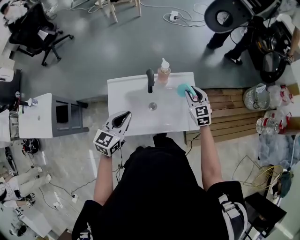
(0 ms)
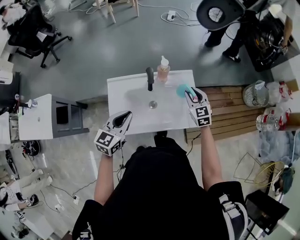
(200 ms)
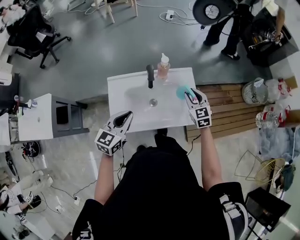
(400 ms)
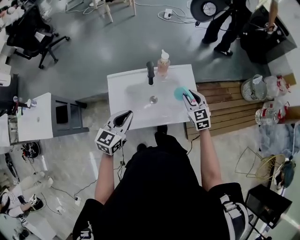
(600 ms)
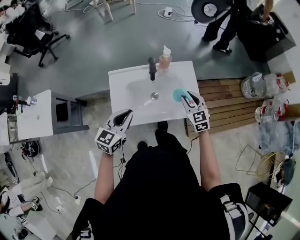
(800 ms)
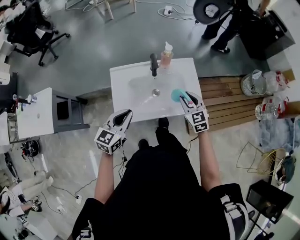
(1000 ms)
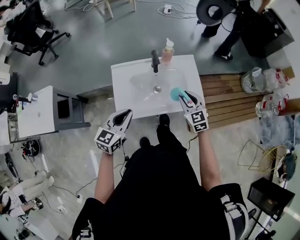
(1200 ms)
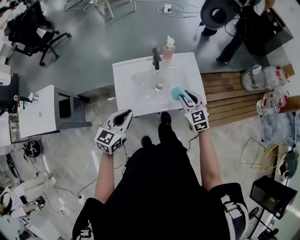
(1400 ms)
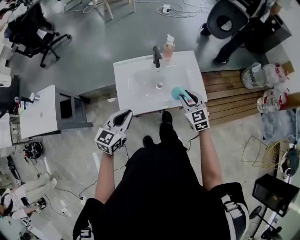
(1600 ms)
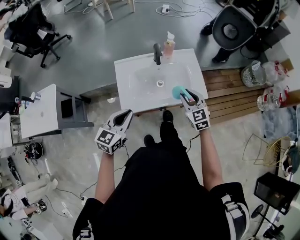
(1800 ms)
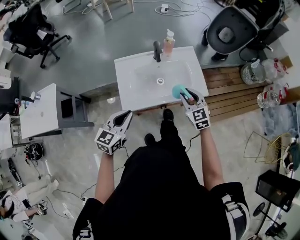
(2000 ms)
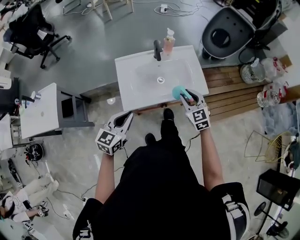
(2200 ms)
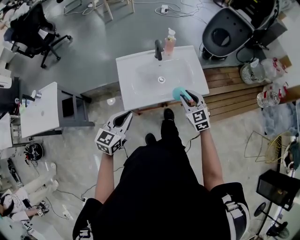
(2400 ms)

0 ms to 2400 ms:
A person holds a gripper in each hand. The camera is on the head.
0 ms to 1200 ms: Both grippers move backward, about 15 cm.
1200 ms to 2400 ms: Both grippers move backward, some 15 cm.

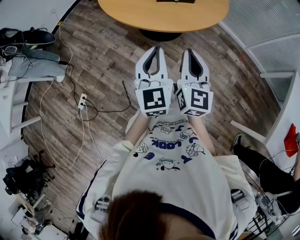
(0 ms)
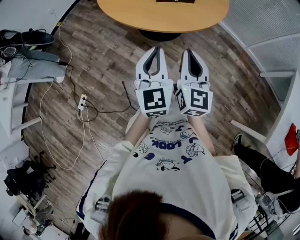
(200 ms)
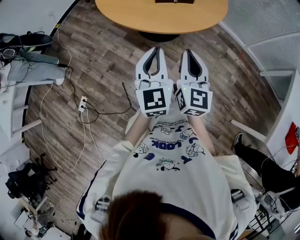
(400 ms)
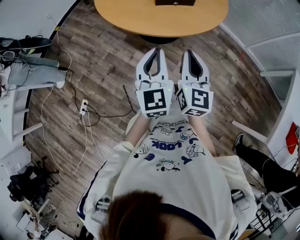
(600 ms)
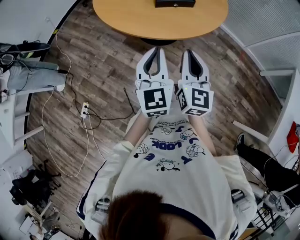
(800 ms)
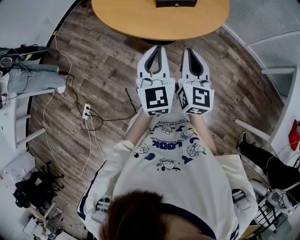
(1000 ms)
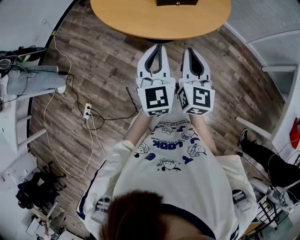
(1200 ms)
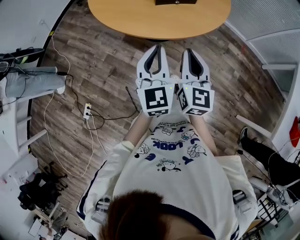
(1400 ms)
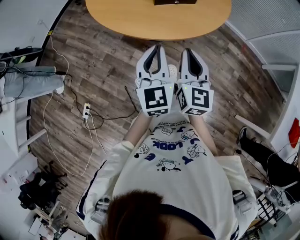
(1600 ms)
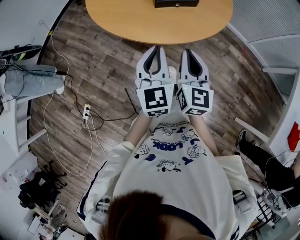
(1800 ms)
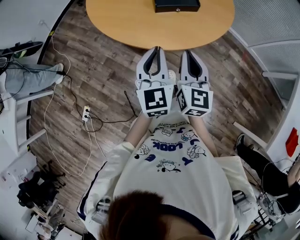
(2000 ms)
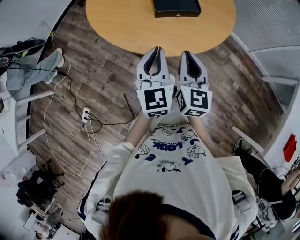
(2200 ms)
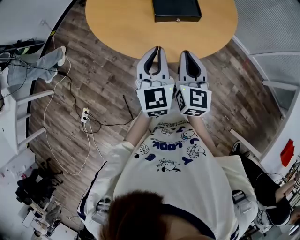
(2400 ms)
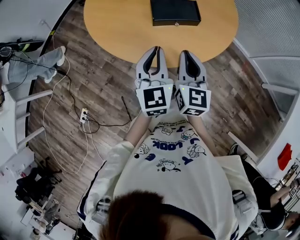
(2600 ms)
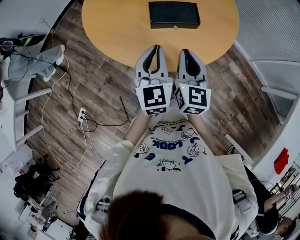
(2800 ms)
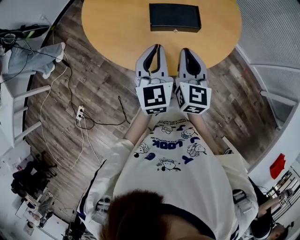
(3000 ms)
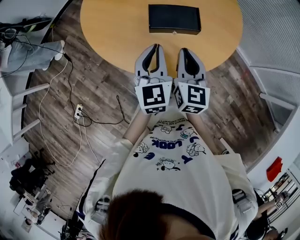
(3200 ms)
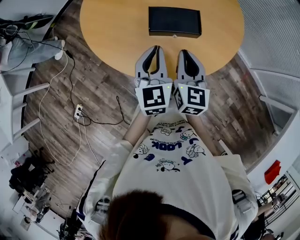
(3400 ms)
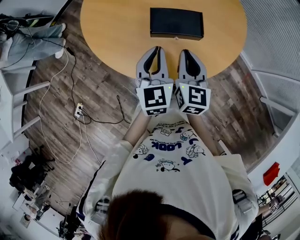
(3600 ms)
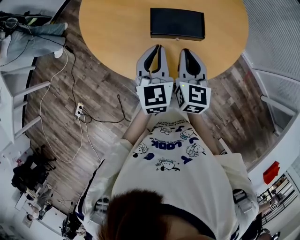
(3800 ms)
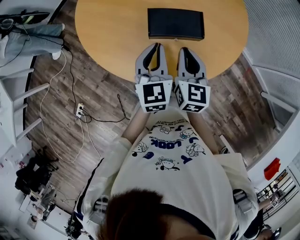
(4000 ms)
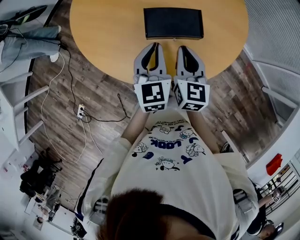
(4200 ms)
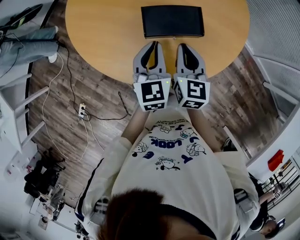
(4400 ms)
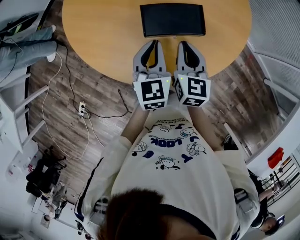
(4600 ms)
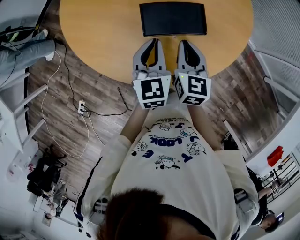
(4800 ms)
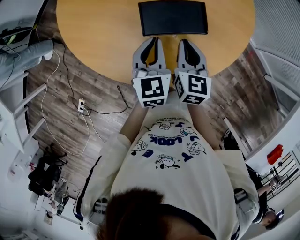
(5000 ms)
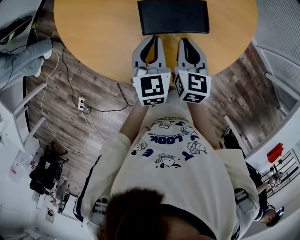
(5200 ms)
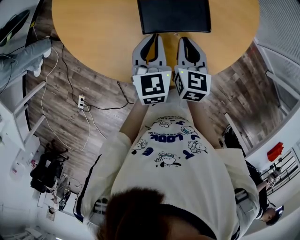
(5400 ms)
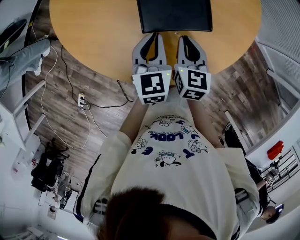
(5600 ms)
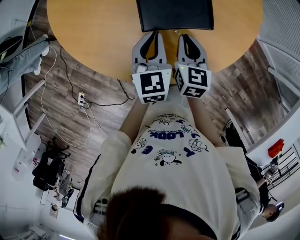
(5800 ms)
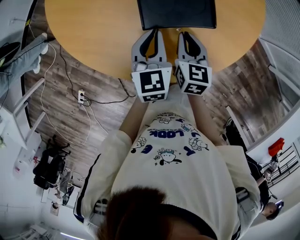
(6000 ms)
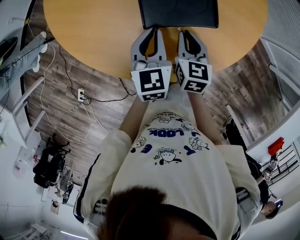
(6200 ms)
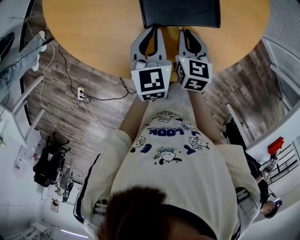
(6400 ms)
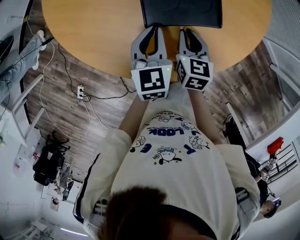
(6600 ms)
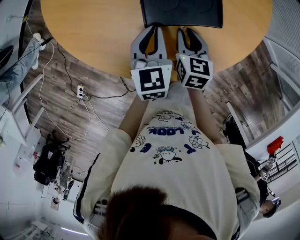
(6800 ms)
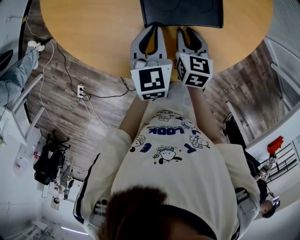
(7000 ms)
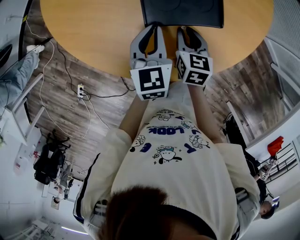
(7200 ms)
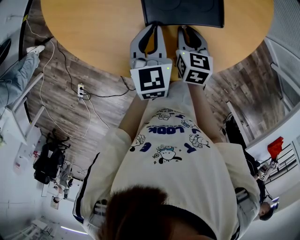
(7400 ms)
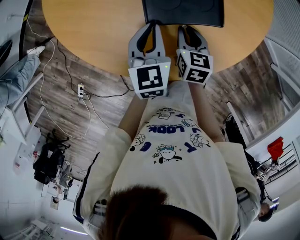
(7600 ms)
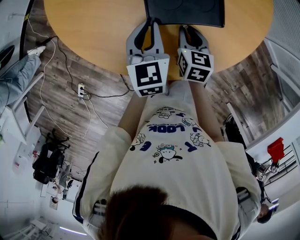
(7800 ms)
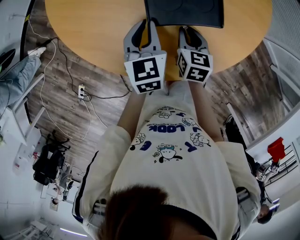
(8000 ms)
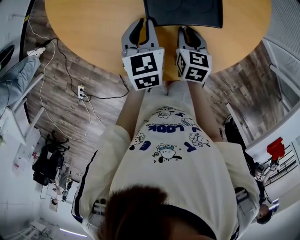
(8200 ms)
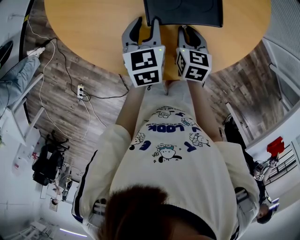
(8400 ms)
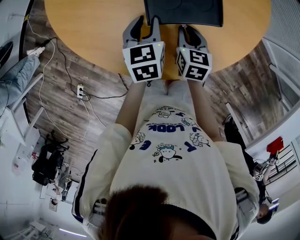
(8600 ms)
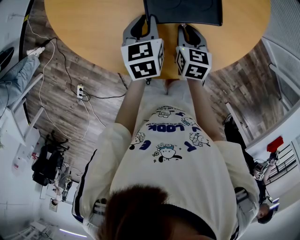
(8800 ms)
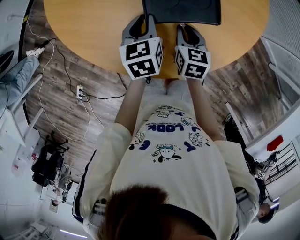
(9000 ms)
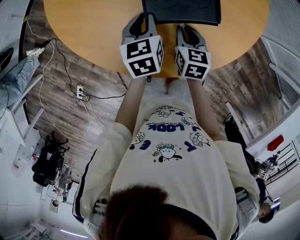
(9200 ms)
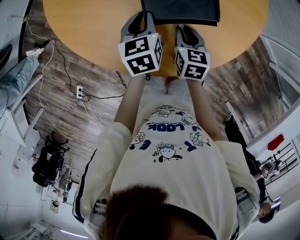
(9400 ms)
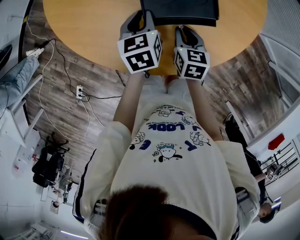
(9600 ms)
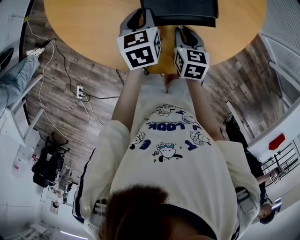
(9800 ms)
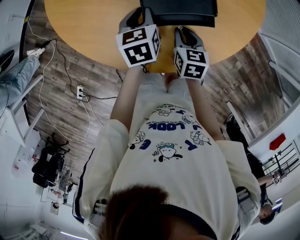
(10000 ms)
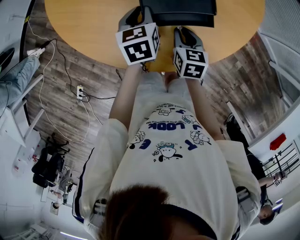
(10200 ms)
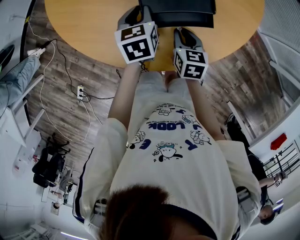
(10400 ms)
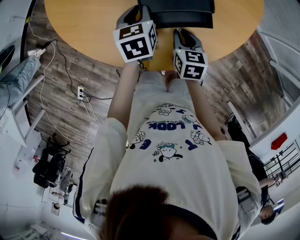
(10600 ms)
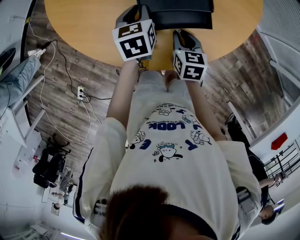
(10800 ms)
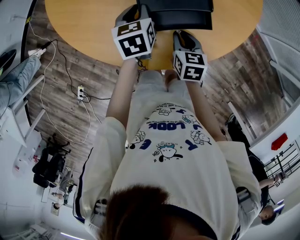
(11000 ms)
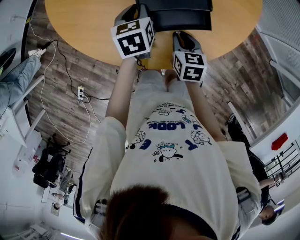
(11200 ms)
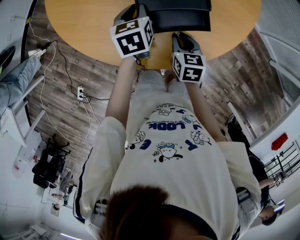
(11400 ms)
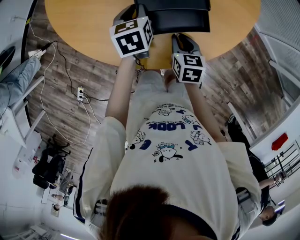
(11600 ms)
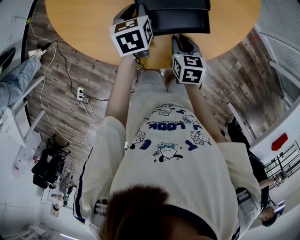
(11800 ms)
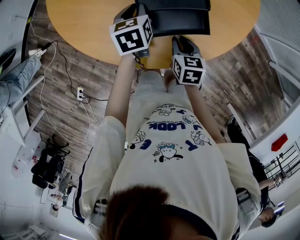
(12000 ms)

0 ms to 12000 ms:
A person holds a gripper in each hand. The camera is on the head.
0 ms to 1600 ms: The two grippers go about 10 cm forward.
1600 ms to 3000 ms: Both grippers travel together forward, approximately 20 cm.
3000 ms to 4400 ms: Both grippers travel together forward and downward, roughly 15 cm.
4400 ms to 6000 ms: The grippers both shift downward by about 10 cm.
6000 ms to 7600 ms: The right gripper moves about 5 cm.
7600 ms to 10400 ms: The grippers move only a little.
10400 ms to 12000 ms: The grippers move only a little.

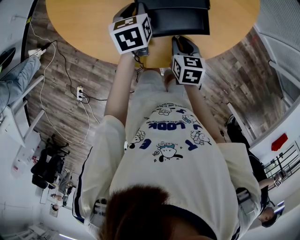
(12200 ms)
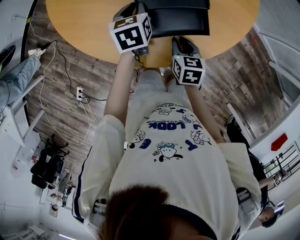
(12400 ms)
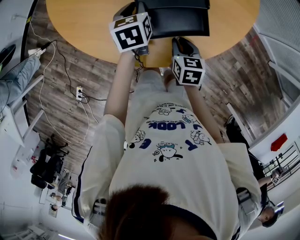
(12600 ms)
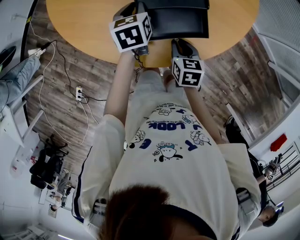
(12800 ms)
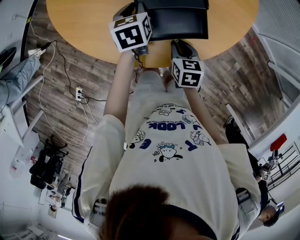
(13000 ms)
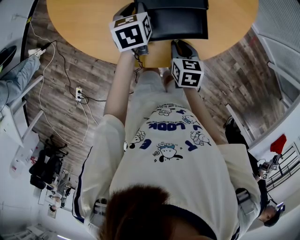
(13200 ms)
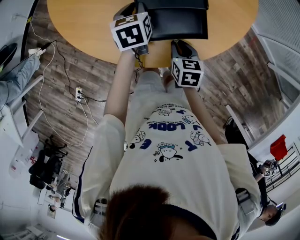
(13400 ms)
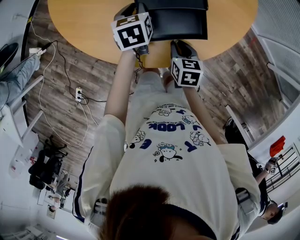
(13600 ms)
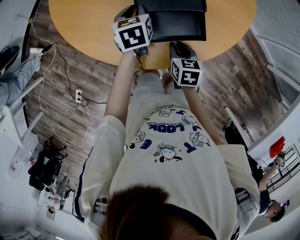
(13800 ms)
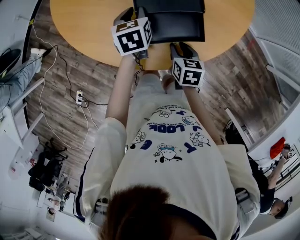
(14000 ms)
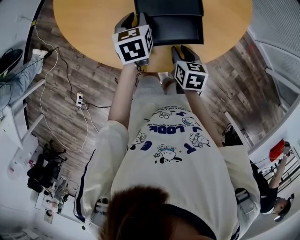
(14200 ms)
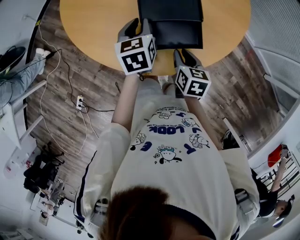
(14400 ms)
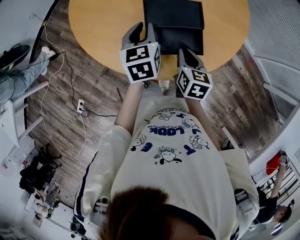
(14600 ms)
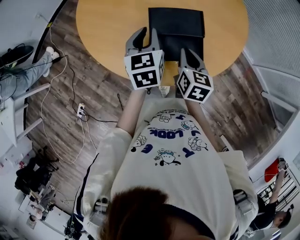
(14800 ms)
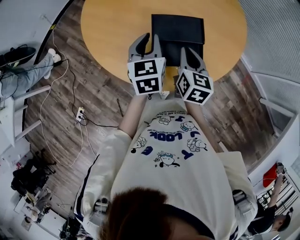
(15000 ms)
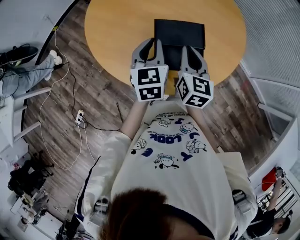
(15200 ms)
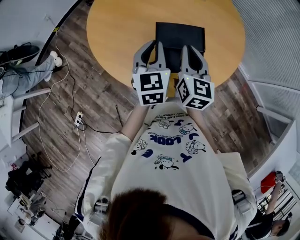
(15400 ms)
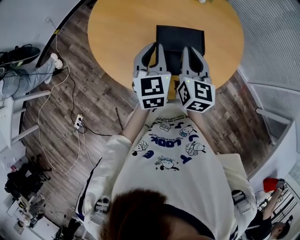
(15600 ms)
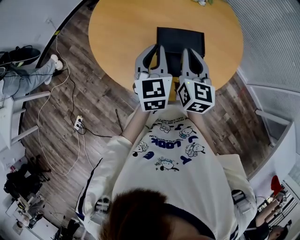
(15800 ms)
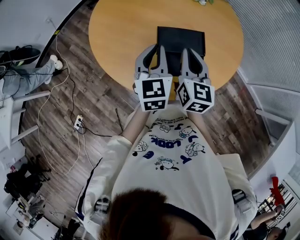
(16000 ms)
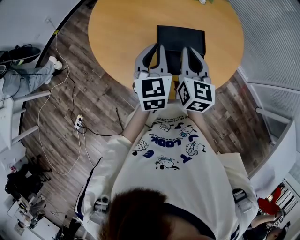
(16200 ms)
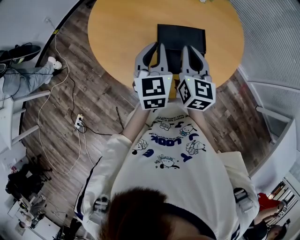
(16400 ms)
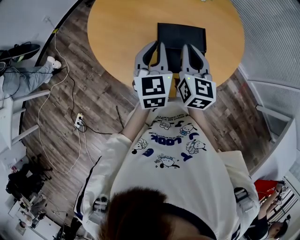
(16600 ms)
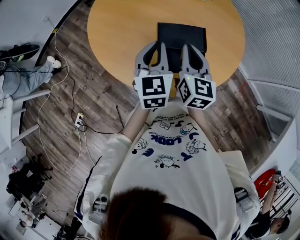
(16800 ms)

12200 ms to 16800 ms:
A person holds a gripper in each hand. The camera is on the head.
12200 ms to 13800 ms: The grippers move only a little.
13800 ms to 15200 ms: The grippers both shift upward by about 20 cm. The right gripper tilts its fingers approximately 30 degrees upward; the left gripper turns by approximately 20 degrees.
15200 ms to 16800 ms: The grippers make only small movements.

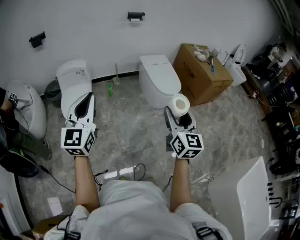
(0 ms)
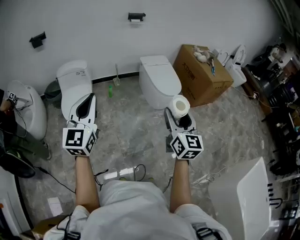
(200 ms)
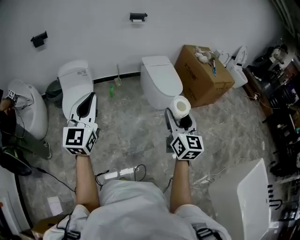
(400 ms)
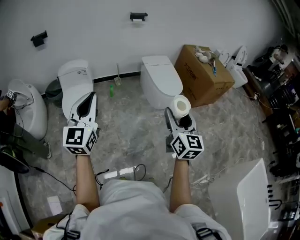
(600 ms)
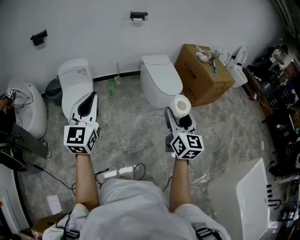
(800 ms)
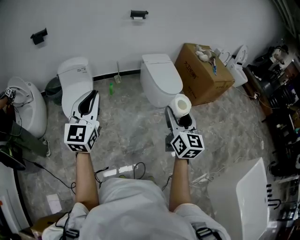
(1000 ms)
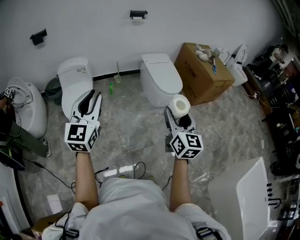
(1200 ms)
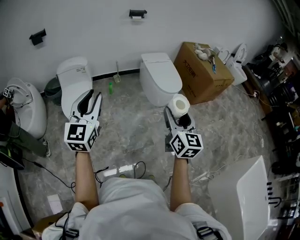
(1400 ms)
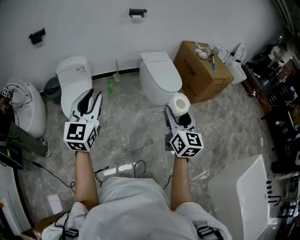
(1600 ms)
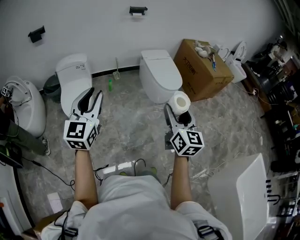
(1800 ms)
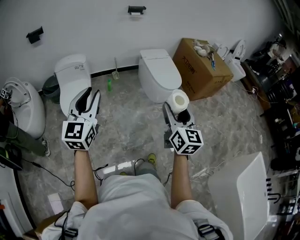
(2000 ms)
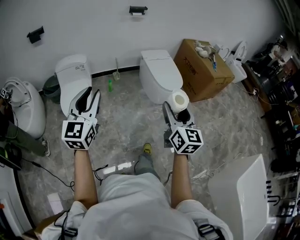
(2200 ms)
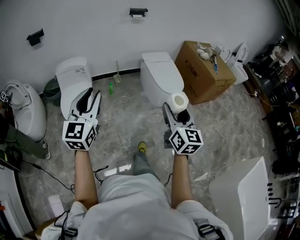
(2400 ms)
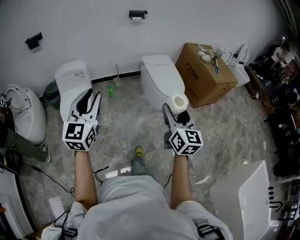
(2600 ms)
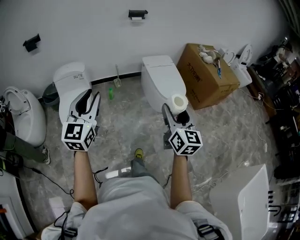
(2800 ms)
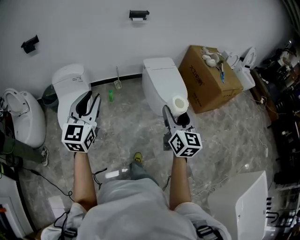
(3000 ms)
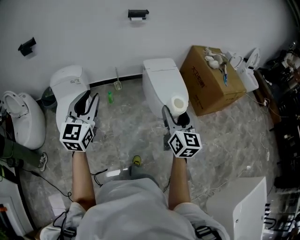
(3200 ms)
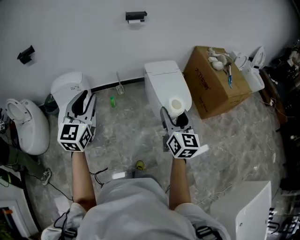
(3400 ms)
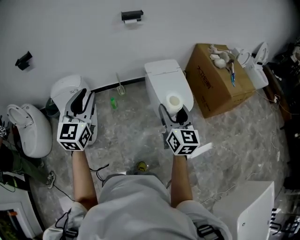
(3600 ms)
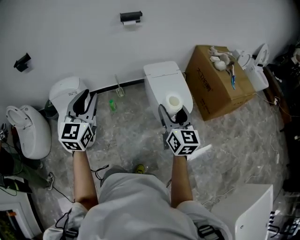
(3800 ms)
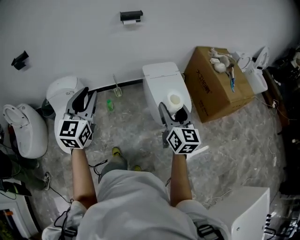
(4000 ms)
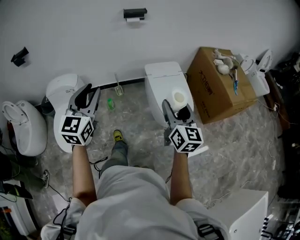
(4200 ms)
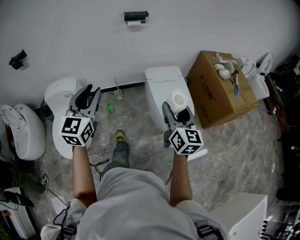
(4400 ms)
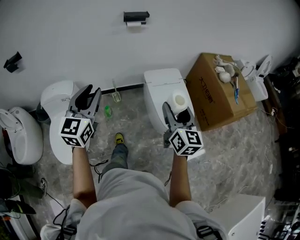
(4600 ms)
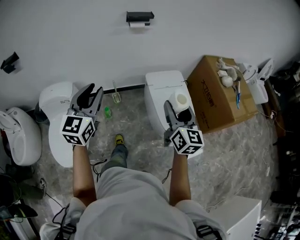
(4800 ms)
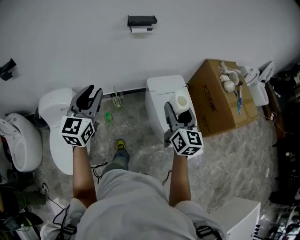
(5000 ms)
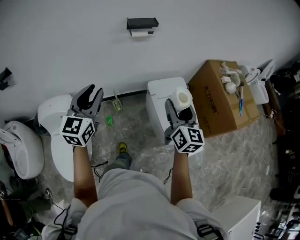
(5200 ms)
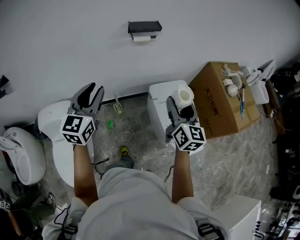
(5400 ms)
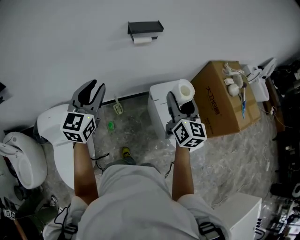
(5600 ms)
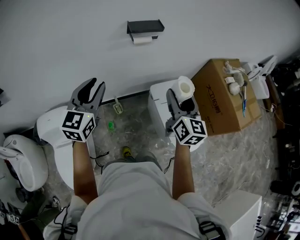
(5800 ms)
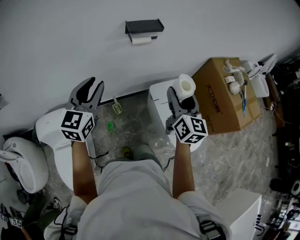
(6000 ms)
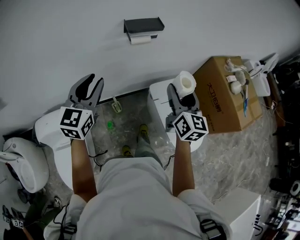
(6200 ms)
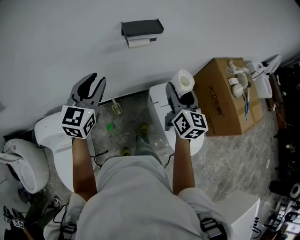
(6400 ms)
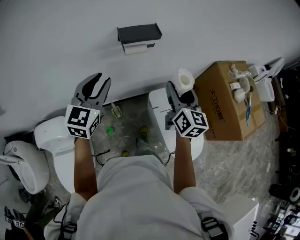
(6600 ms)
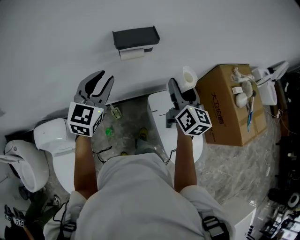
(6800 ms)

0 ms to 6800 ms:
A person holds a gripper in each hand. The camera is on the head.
0 ms to 1400 ms: The grippers move only a little.
1400 ms to 2800 ms: Both grippers travel together forward, about 15 cm.
2800 ms to 4000 ms: The two grippers go roughly 30 cm forward.
4000 ms to 5400 ms: The pair of grippers is taken forward, some 40 cm.
5400 ms to 6800 ms: The grippers both shift forward by roughly 30 cm.
